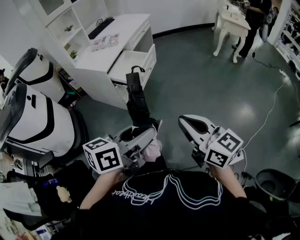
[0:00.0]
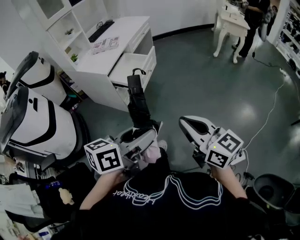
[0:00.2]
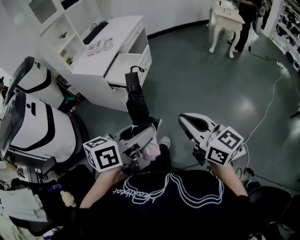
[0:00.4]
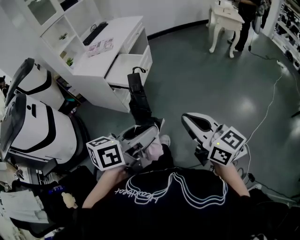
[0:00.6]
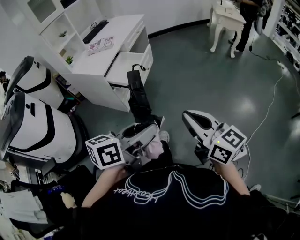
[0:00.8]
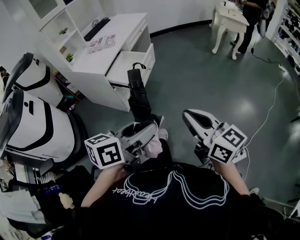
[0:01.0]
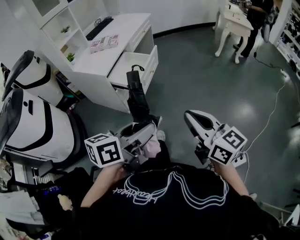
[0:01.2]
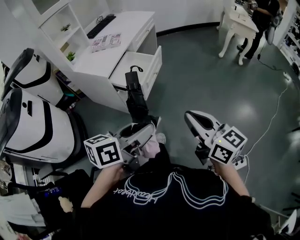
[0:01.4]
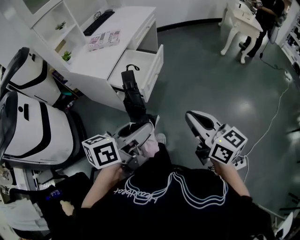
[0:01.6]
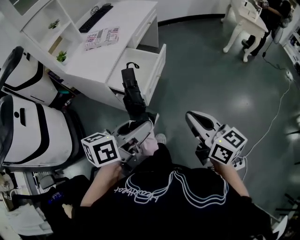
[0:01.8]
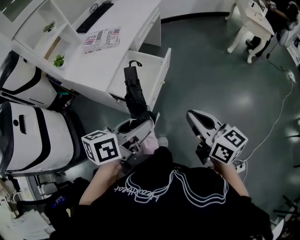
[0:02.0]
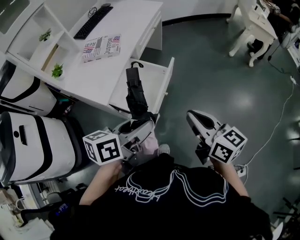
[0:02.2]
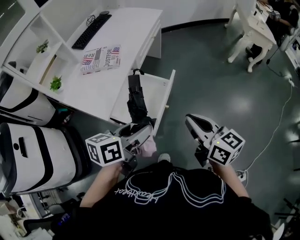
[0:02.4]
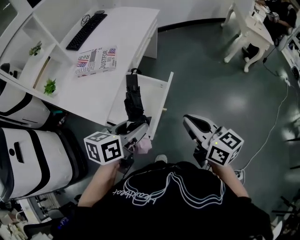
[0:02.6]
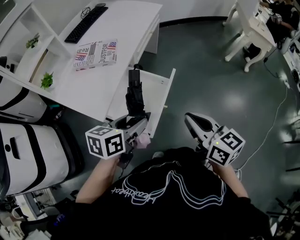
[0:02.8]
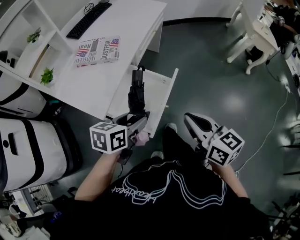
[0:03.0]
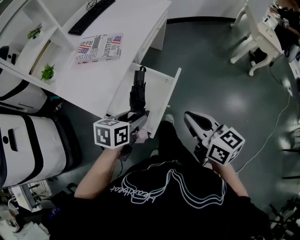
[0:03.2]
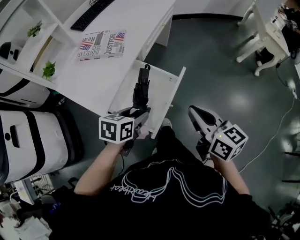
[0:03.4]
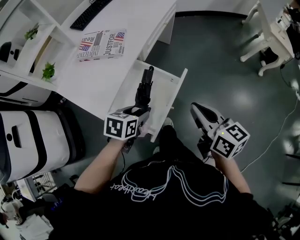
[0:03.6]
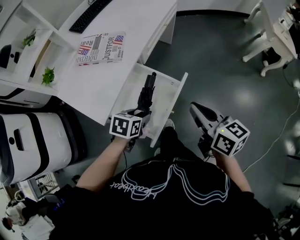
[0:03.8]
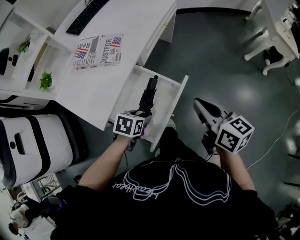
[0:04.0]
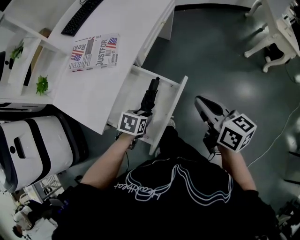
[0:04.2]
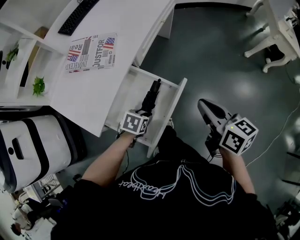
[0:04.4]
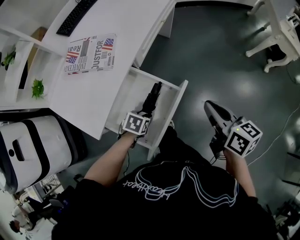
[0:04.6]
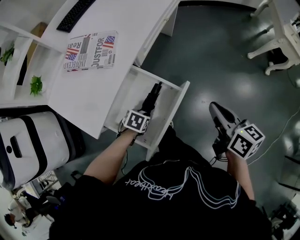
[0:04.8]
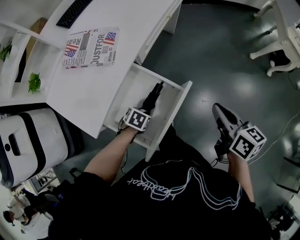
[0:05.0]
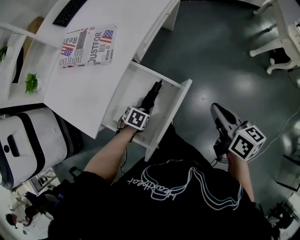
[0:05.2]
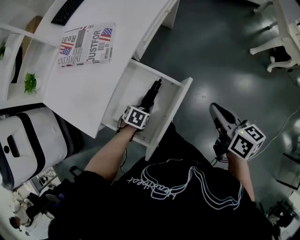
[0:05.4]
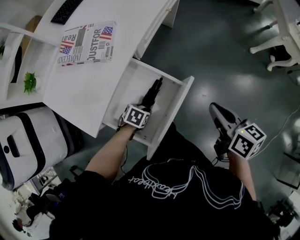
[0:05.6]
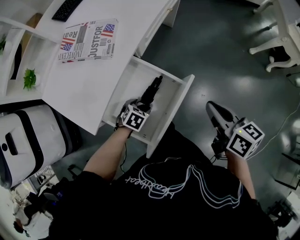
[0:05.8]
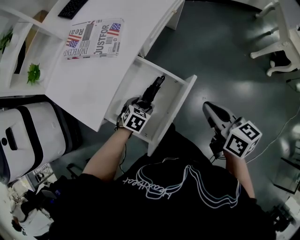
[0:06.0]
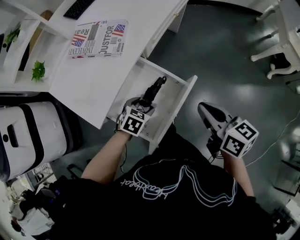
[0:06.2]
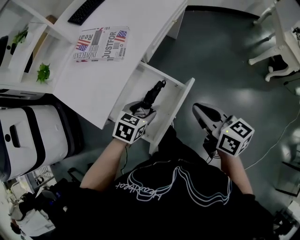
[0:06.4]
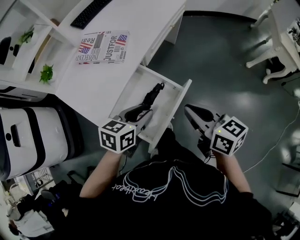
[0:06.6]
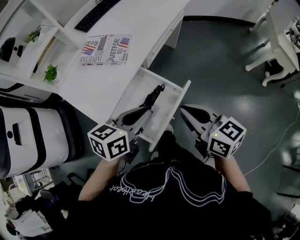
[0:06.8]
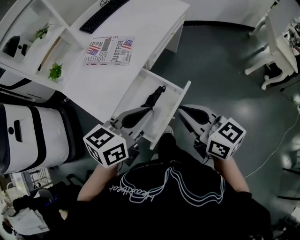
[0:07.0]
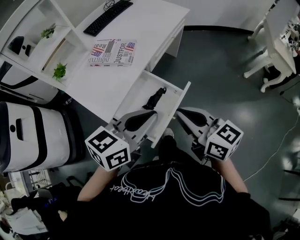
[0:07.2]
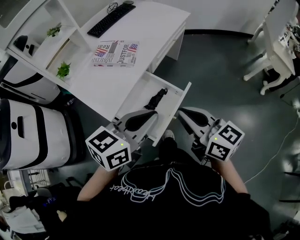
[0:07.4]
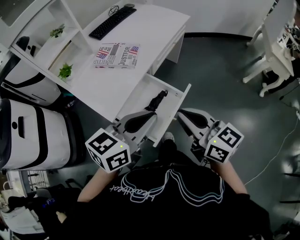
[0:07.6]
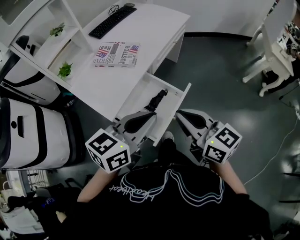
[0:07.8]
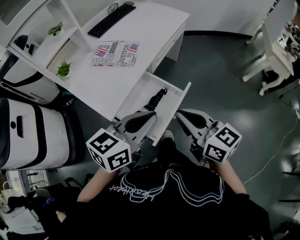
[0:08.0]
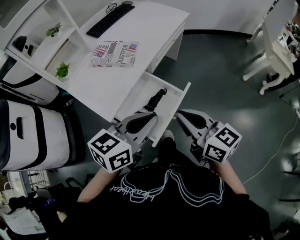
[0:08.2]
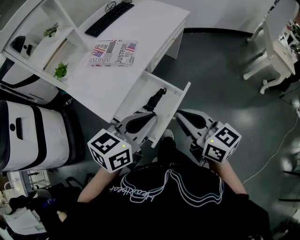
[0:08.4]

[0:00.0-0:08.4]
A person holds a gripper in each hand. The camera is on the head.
0:00.0 to 0:01.4: Both grippers travel together forward, approximately 10 cm.
0:01.4 to 0:02.8: The two grippers go about 35 cm forward.
0:02.8 to 0:04.2: The right gripper goes about 15 cm forward. The left gripper travels downward and forward by roughly 25 cm, and angles its fingers downward, by about 30 degrees.
0:04.2 to 0:05.6: The right gripper moves downward, roughly 5 cm. Meanwhile the left gripper travels downward by about 10 cm.
0:05.6 to 0:07.0: The left gripper heads upward, covering roughly 40 cm, points its fingers about 50 degrees further upward, and closes up. The right gripper moves to the left, upward and backward, some 20 cm, and swivels roughly 30 degrees.

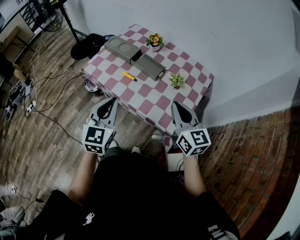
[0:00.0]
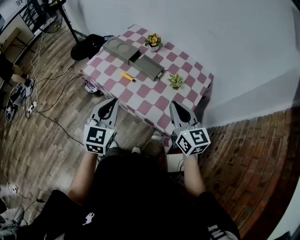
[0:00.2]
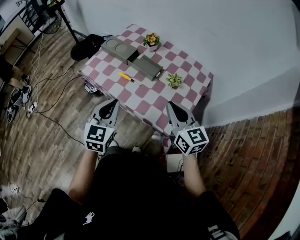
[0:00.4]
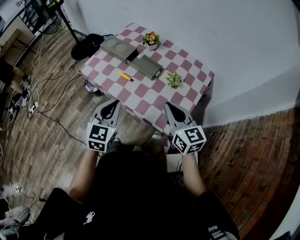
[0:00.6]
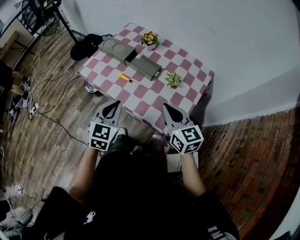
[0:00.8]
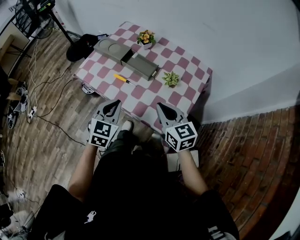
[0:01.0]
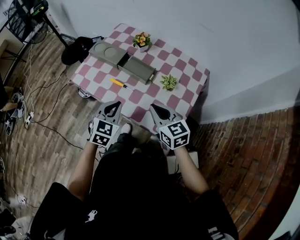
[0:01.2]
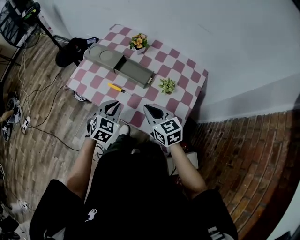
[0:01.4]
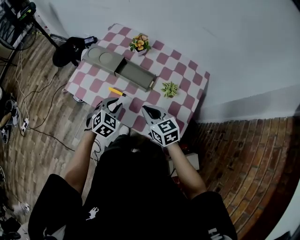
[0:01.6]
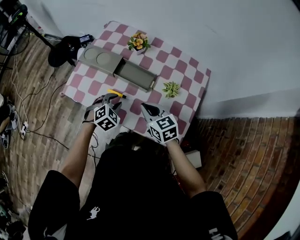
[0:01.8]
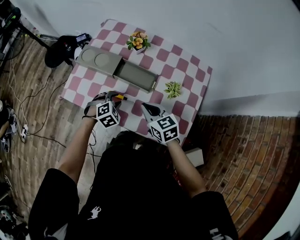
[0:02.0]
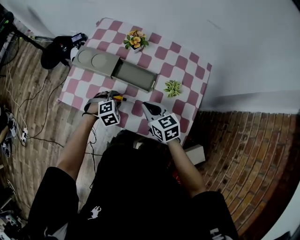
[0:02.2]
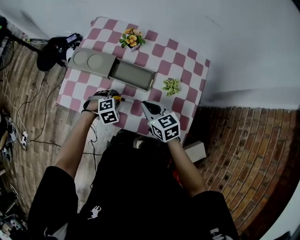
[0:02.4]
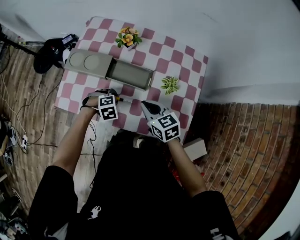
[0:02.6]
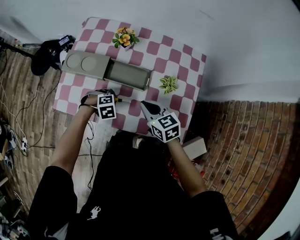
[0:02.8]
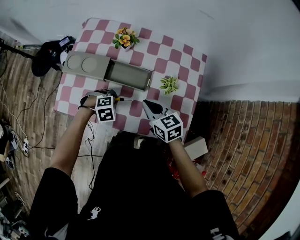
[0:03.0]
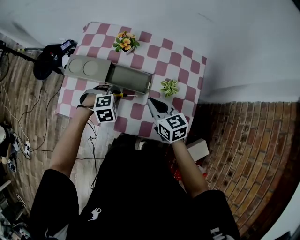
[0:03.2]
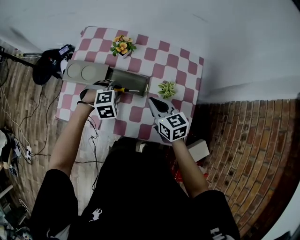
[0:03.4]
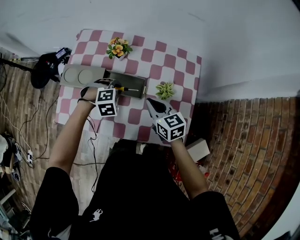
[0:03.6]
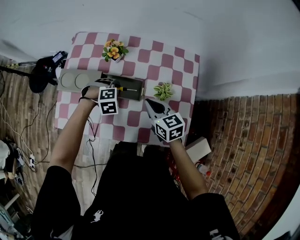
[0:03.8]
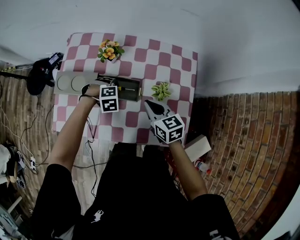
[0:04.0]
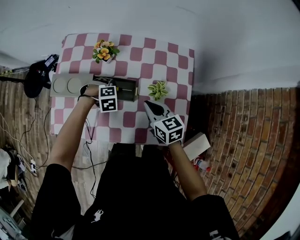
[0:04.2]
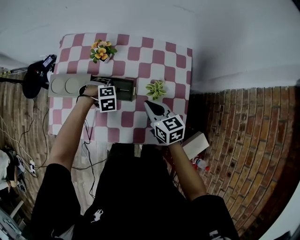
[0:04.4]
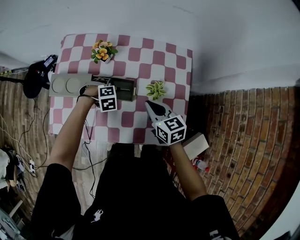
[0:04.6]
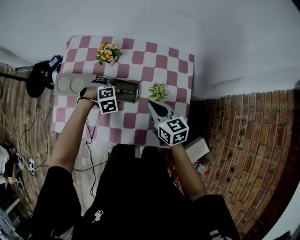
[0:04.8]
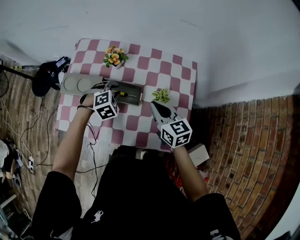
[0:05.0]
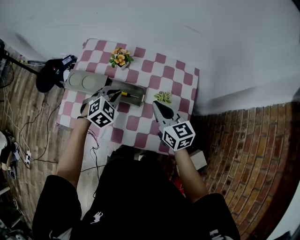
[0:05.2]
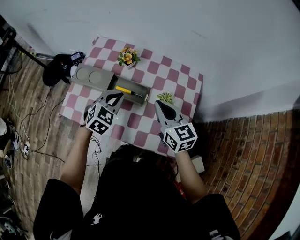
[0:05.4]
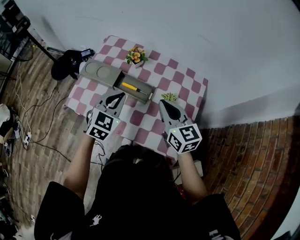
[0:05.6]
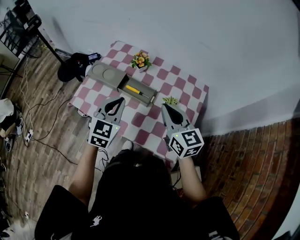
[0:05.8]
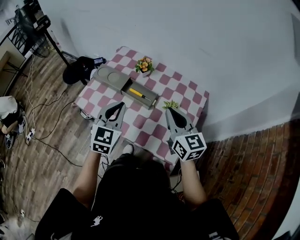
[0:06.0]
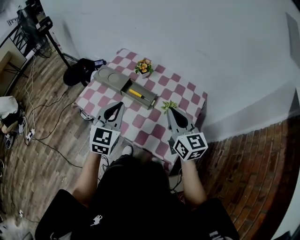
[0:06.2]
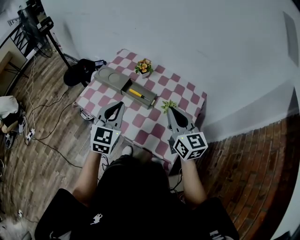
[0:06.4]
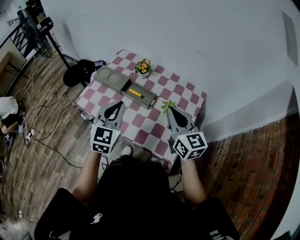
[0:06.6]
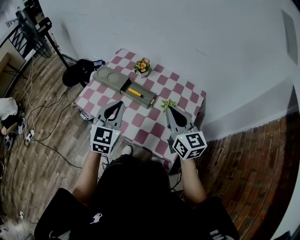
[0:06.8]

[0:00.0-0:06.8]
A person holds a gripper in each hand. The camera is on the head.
0:00.0 to 0:01.4: The right gripper moves downward and forward, some 15 cm, while the left gripper heads downward, forward and to the right, covering roughly 20 cm, and rotates roughly 30 degrees.
0:01.4 to 0:02.8: The left gripper heads downward, covering some 15 cm, and points its fingers about 40 degrees further downward, while the right gripper moves some 10 cm.
0:02.8 to 0:04.0: The left gripper moves roughly 15 cm. Meanwhile the right gripper moves some 5 cm.
0:04.0 to 0:05.4: Both grippers move upward, roughly 15 cm. The left gripper tips its fingers upward by some 40 degrees.
0:05.4 to 0:06.8: The left gripper goes roughly 20 cm backward and upward, and swivels about 40 degrees. The right gripper heads backward and upward, covering roughly 10 cm.

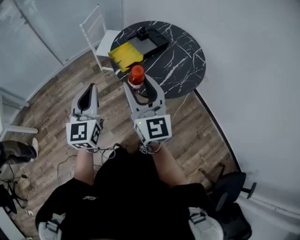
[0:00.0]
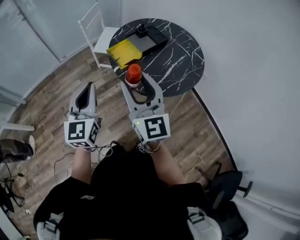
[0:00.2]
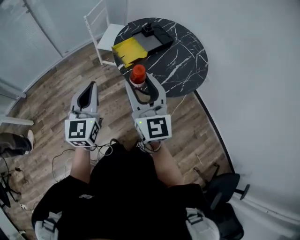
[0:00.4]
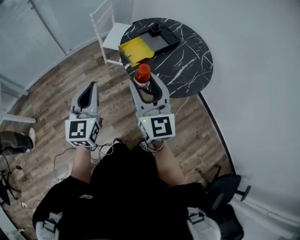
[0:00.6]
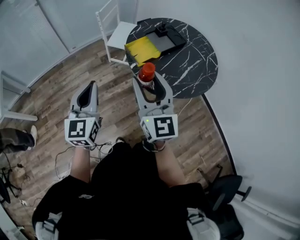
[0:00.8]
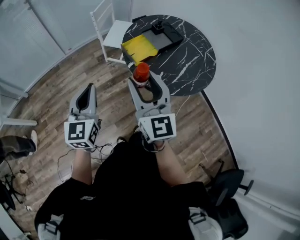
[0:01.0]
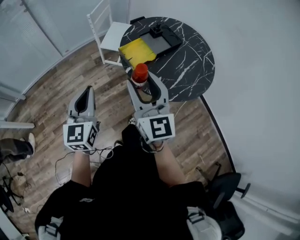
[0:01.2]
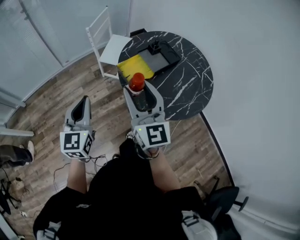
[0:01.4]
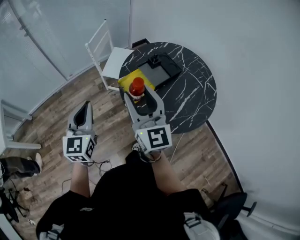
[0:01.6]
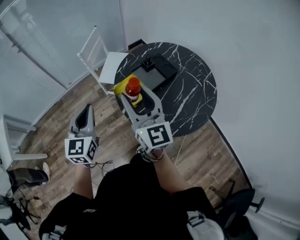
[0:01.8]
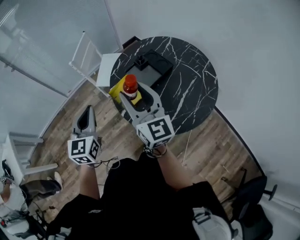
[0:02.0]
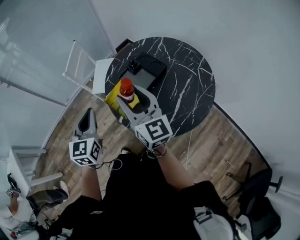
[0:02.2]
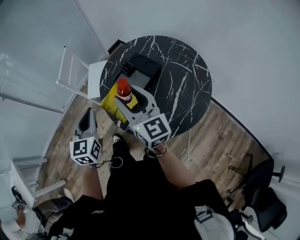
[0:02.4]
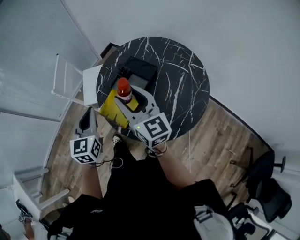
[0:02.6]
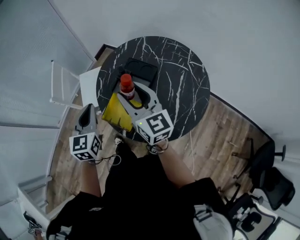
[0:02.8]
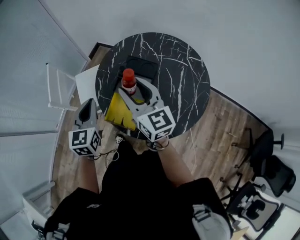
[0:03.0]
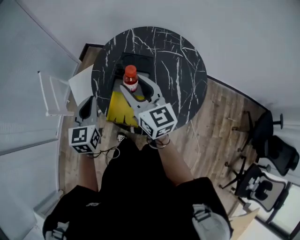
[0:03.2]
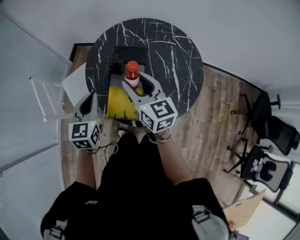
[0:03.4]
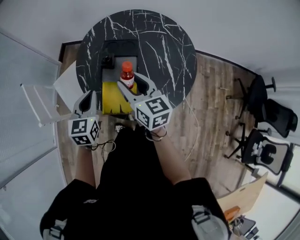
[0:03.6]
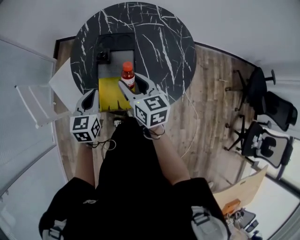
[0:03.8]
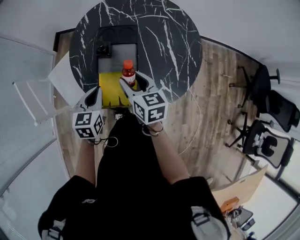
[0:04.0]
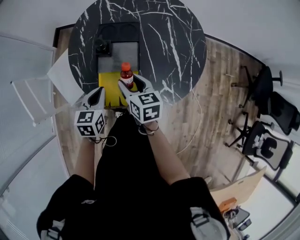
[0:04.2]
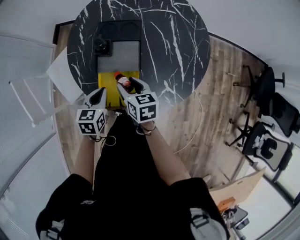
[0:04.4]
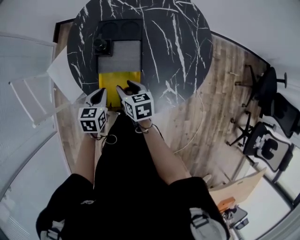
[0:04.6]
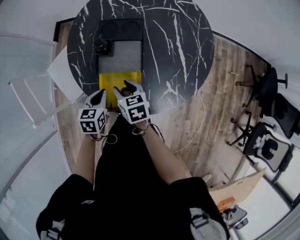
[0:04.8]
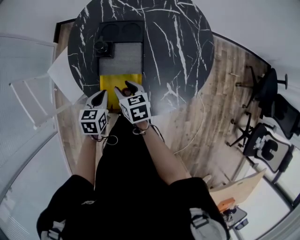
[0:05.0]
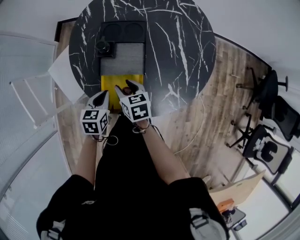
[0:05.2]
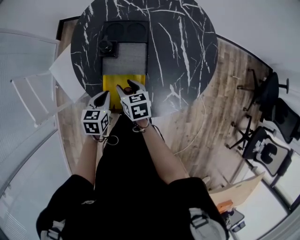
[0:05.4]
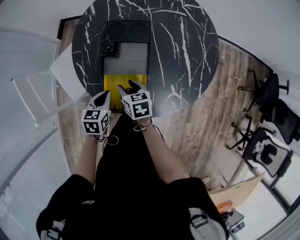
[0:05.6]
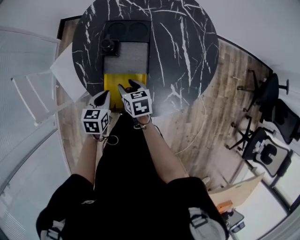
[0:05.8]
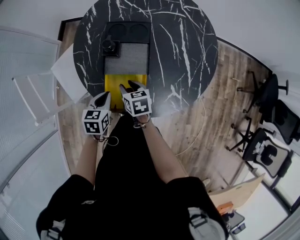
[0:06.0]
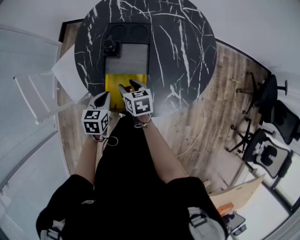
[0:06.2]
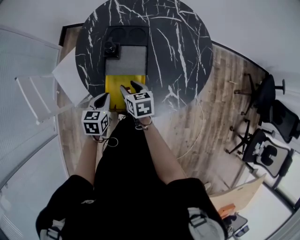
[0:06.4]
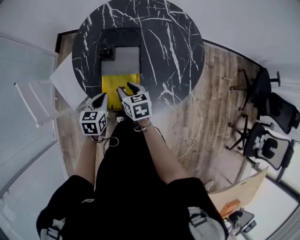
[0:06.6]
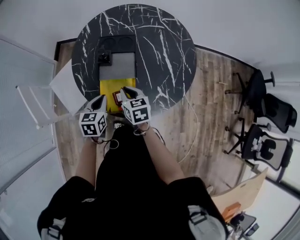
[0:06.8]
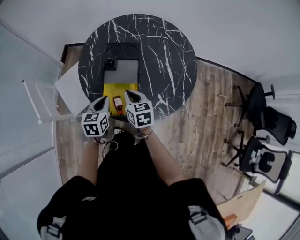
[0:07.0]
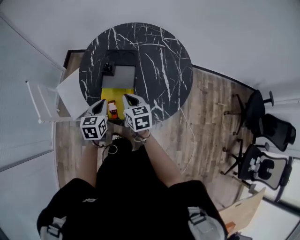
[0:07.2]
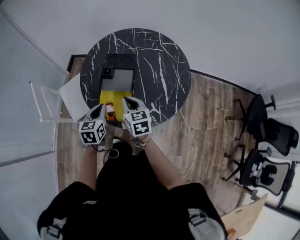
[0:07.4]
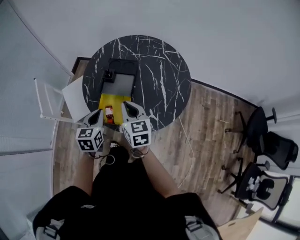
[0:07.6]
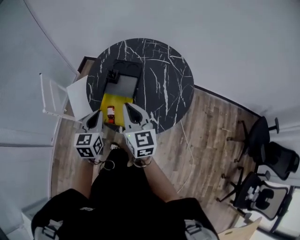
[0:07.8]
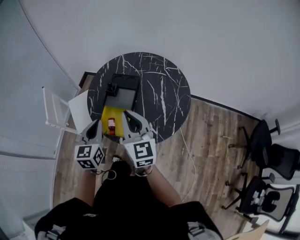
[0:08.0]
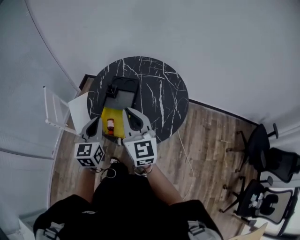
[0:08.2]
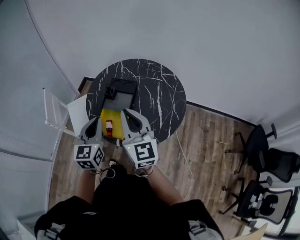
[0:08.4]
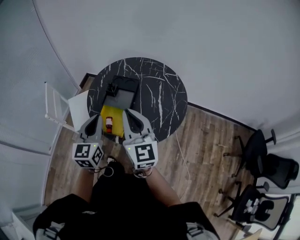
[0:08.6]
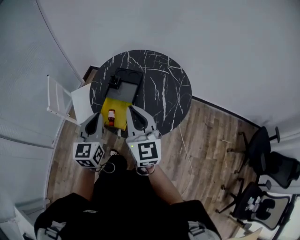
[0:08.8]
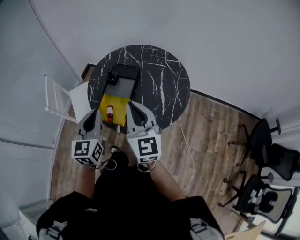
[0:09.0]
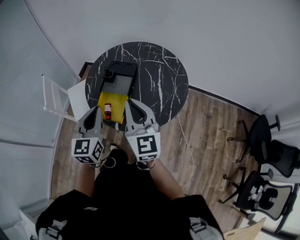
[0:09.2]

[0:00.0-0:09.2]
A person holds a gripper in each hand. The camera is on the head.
0:00.0 to 0:01.6: The left gripper heads forward and to the left, covering roughly 20 cm, while the right gripper heads forward, covering roughly 20 cm.
0:01.6 to 0:03.0: The right gripper shifts by about 25 cm, and rotates approximately 20 degrees. The left gripper changes place by approximately 35 cm, and swivels about 30 degrees.
0:03.0 to 0:04.6: The grippers both shift downward by about 30 cm. The left gripper changes its angle by approximately 40 degrees. The right gripper points its fingers roughly 40 degrees further downward.
0:04.6 to 0:06.2: The grippers make only small movements.
0:06.2 to 0:07.6: The right gripper moves upward, roughly 25 cm, rotates about 30 degrees, and closes up; the left gripper moves upward and backward, some 20 cm, and changes its angle by some 20 degrees.
0:07.6 to 0:09.2: The left gripper moves upward and backward, about 15 cm, and swivels about 20 degrees; the right gripper goes roughly 20 cm upward, backward and to the right, and turns by approximately 30 degrees.
